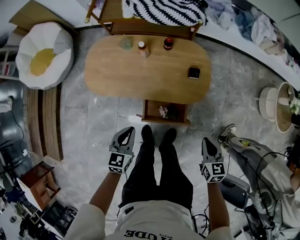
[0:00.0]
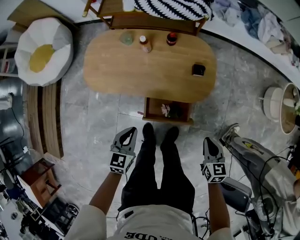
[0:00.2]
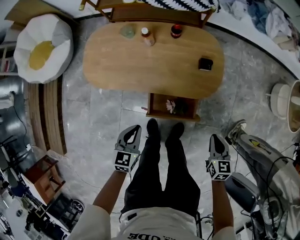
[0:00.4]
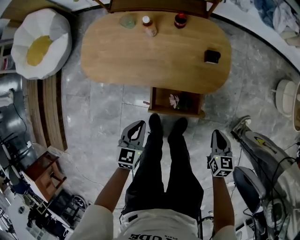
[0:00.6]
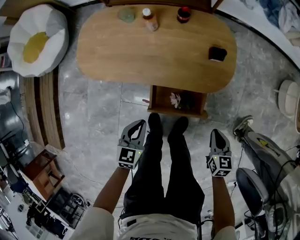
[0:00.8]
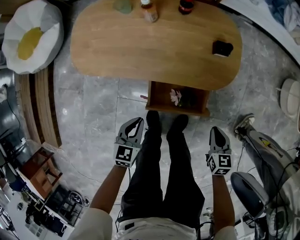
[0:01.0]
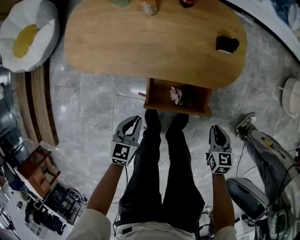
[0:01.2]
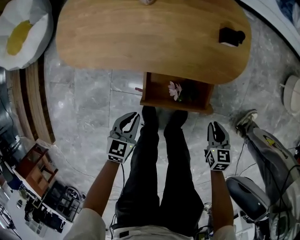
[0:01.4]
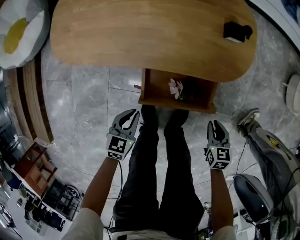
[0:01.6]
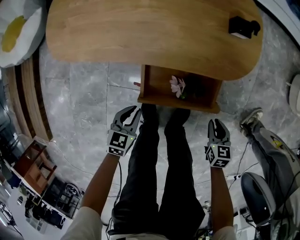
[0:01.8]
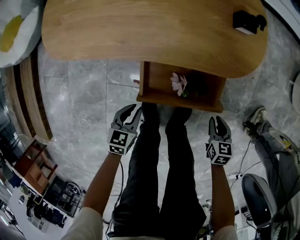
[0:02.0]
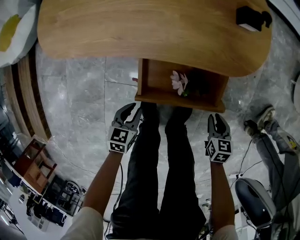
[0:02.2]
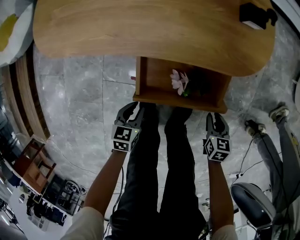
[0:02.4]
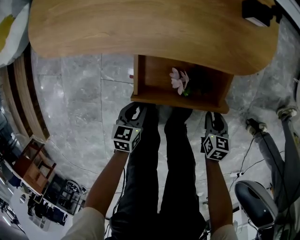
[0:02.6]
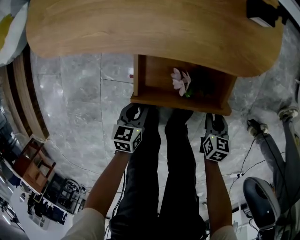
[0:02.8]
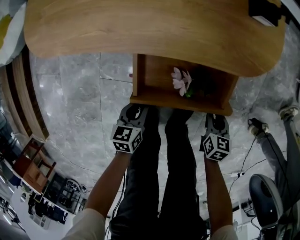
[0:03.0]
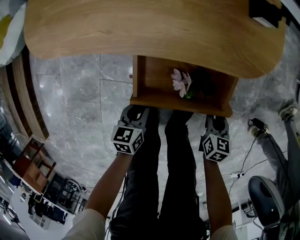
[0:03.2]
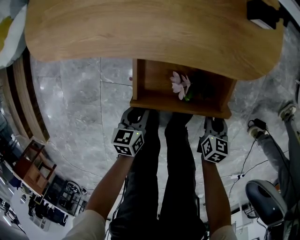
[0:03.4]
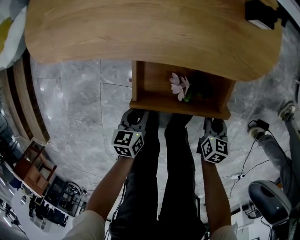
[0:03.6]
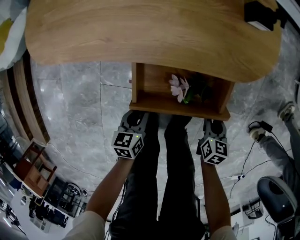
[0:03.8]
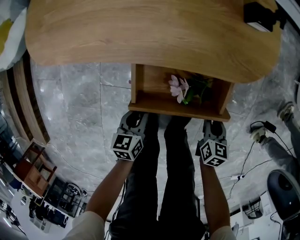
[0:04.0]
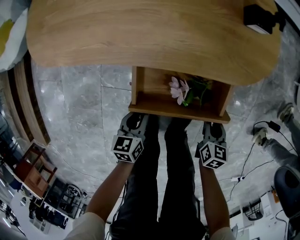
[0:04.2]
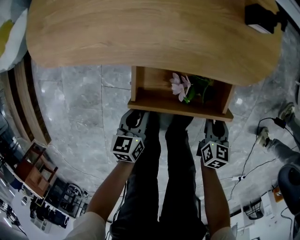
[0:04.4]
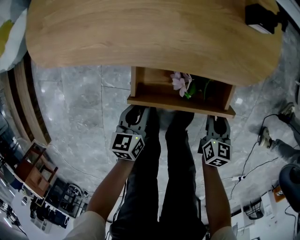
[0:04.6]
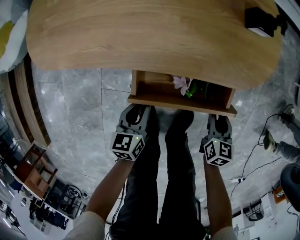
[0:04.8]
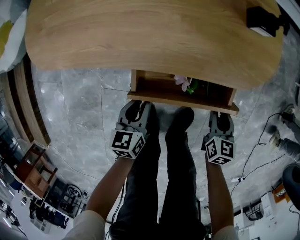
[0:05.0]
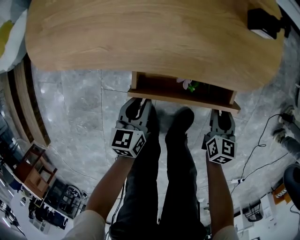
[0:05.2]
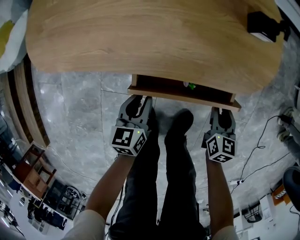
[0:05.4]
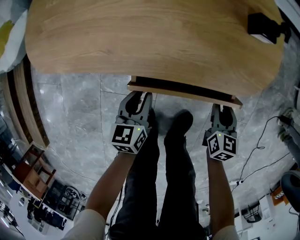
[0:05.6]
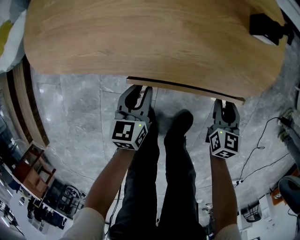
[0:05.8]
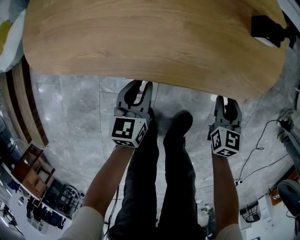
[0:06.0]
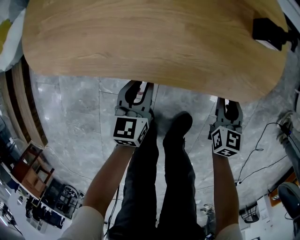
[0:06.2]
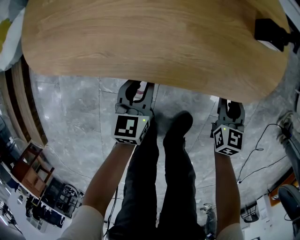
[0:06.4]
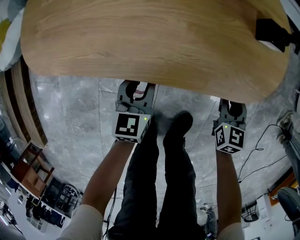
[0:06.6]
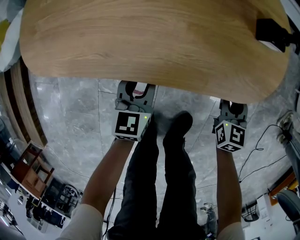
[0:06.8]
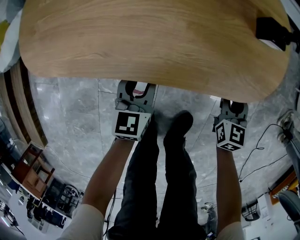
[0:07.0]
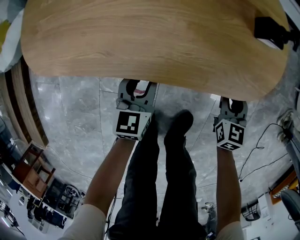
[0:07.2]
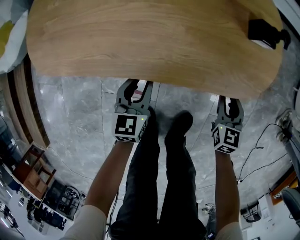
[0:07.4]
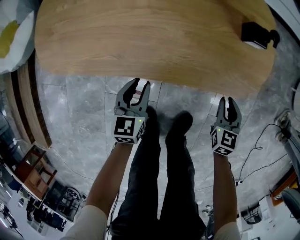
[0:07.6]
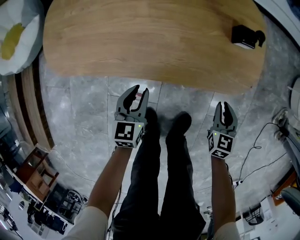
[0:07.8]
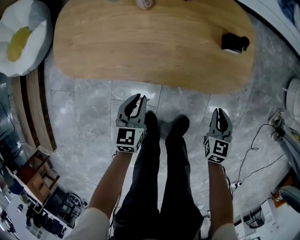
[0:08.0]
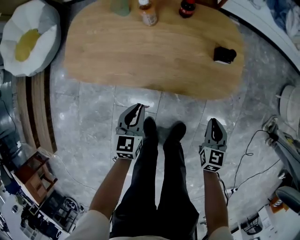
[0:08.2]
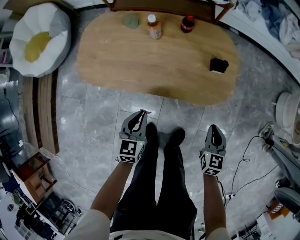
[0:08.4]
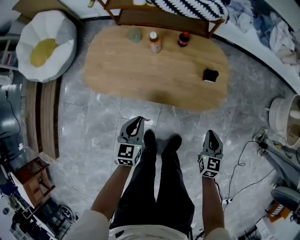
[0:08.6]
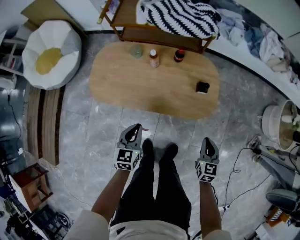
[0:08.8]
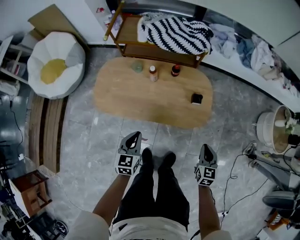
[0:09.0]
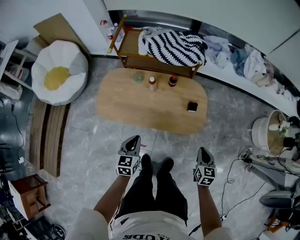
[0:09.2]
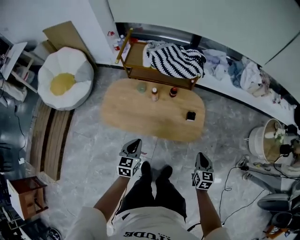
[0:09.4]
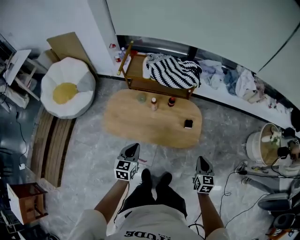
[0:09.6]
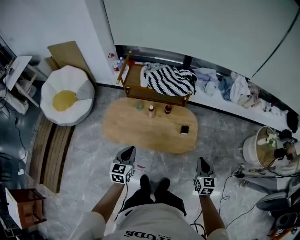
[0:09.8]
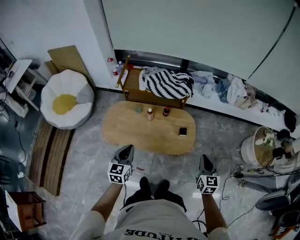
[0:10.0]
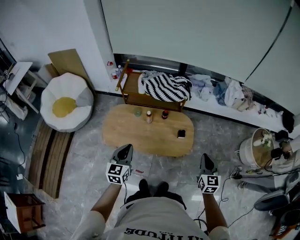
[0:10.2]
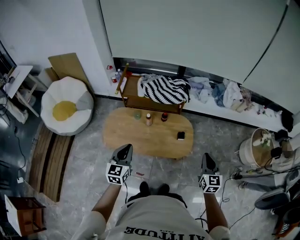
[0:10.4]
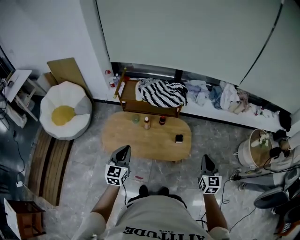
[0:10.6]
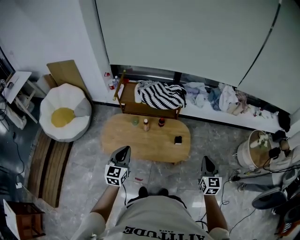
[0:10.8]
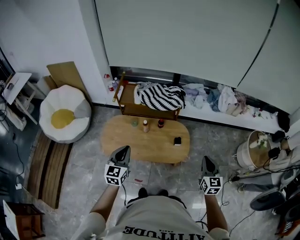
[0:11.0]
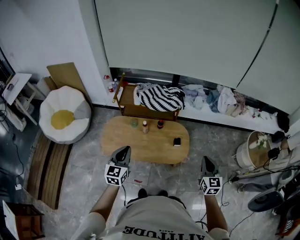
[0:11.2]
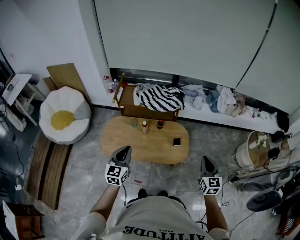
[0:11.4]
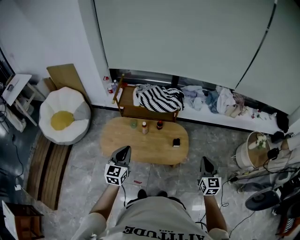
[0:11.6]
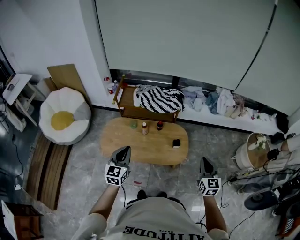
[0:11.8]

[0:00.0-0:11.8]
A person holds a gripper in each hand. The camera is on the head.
0:00.0 to 0:01.4: Both grippers travel together downward, about 30 cm.
0:01.4 to 0:03.0: Both grippers move downward, approximately 20 cm. The left gripper rotates some 20 degrees.
0:03.0 to 0:04.4: The grippers make only small movements.
0:04.4 to 0:06.0: The two grippers go about 15 cm forward.
0:06.0 to 0:07.4: The grippers make only small movements.
0:07.4 to 0:08.8: The grippers both shift upward by approximately 35 cm. The left gripper closes. The right gripper closes up.
0:08.8 to 0:10.4: Both grippers travel together upward, roughly 35 cm.
0:10.4 to 0:11.8: There are only small adjustments of the grippers.

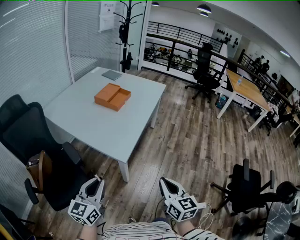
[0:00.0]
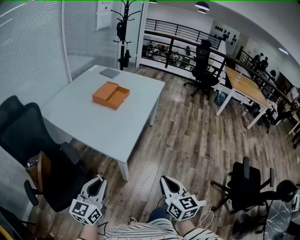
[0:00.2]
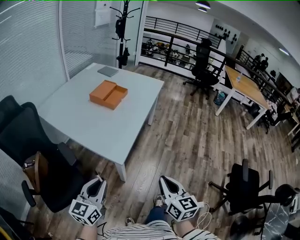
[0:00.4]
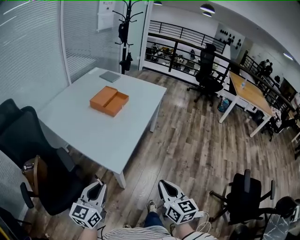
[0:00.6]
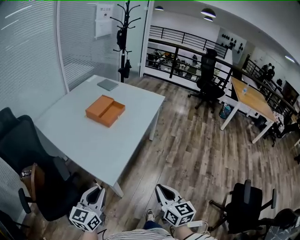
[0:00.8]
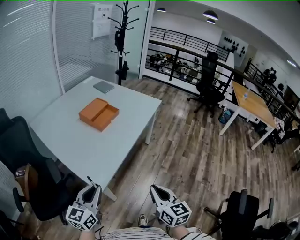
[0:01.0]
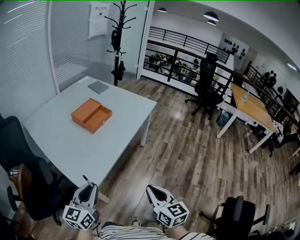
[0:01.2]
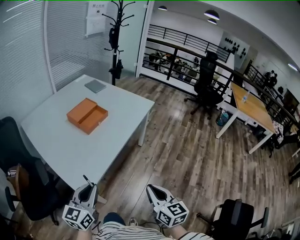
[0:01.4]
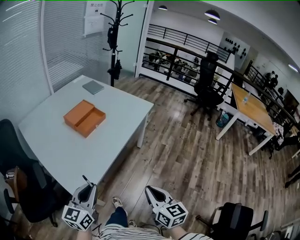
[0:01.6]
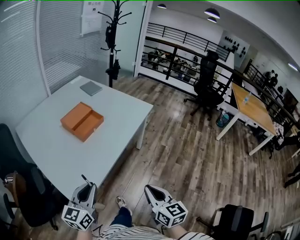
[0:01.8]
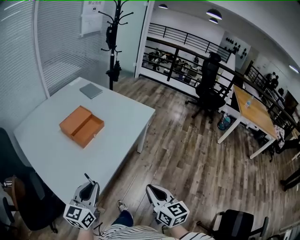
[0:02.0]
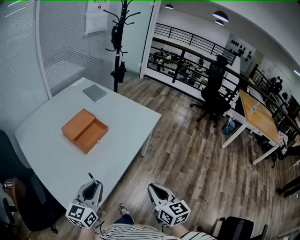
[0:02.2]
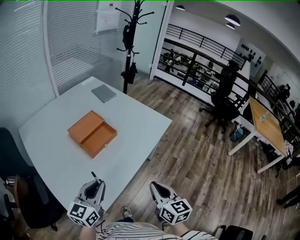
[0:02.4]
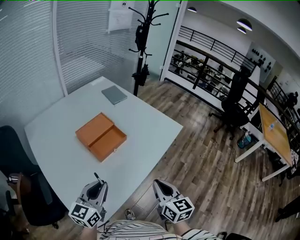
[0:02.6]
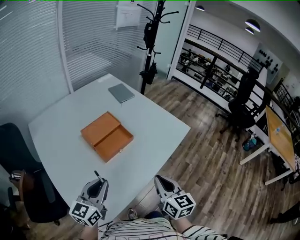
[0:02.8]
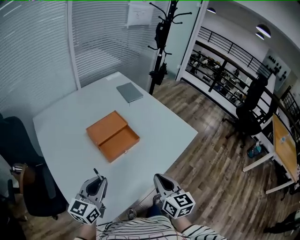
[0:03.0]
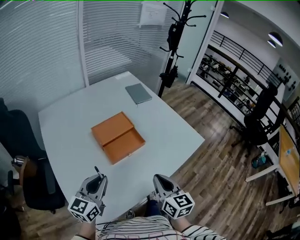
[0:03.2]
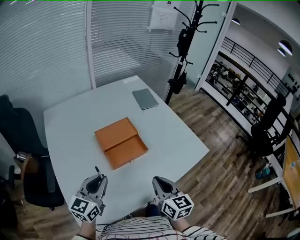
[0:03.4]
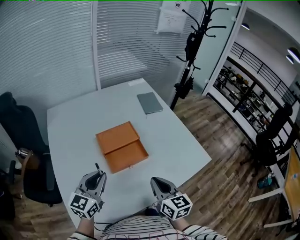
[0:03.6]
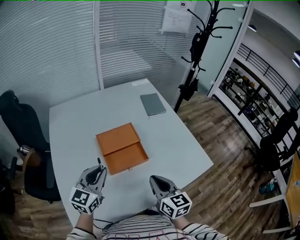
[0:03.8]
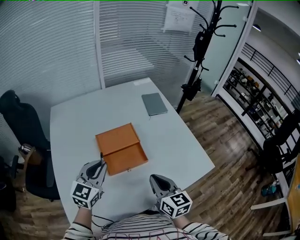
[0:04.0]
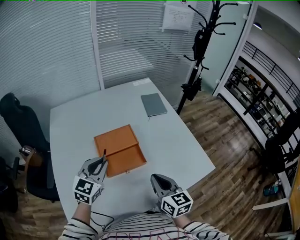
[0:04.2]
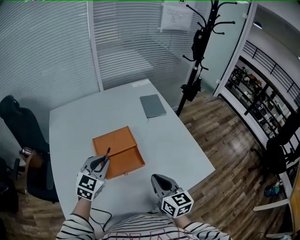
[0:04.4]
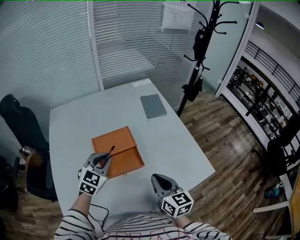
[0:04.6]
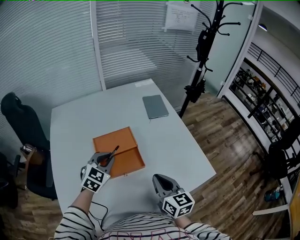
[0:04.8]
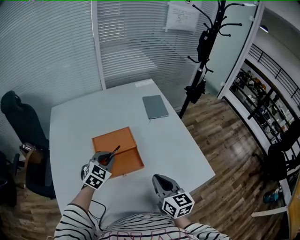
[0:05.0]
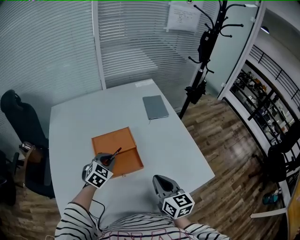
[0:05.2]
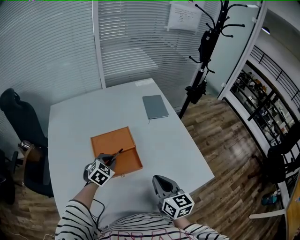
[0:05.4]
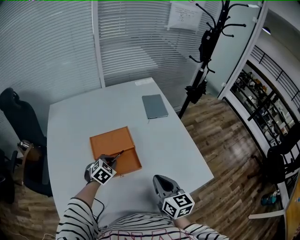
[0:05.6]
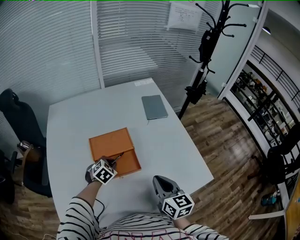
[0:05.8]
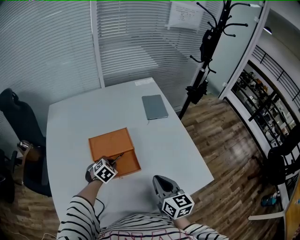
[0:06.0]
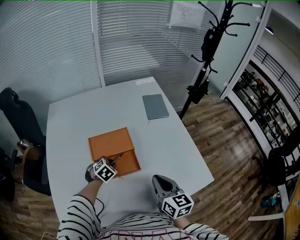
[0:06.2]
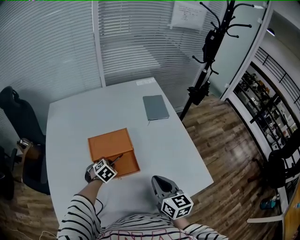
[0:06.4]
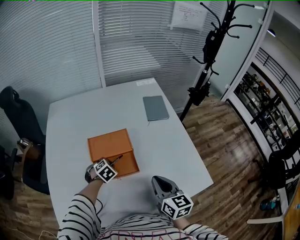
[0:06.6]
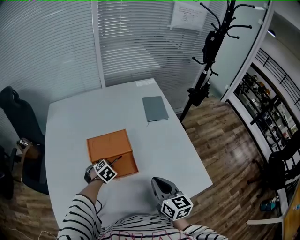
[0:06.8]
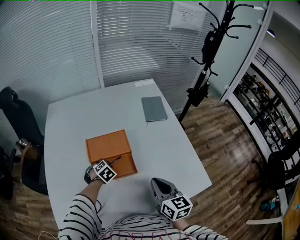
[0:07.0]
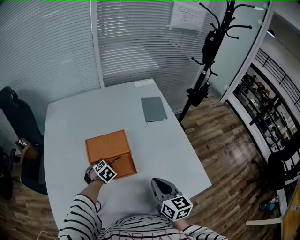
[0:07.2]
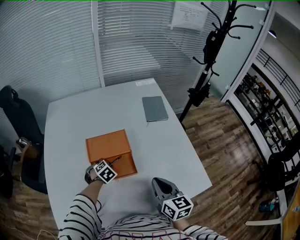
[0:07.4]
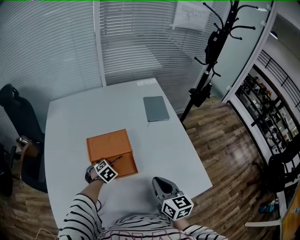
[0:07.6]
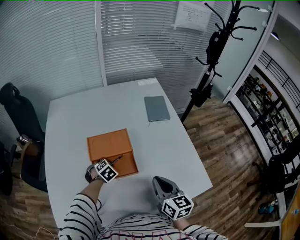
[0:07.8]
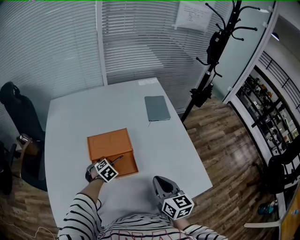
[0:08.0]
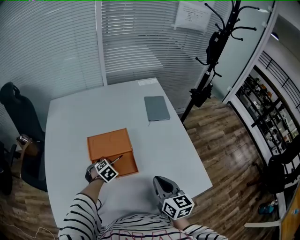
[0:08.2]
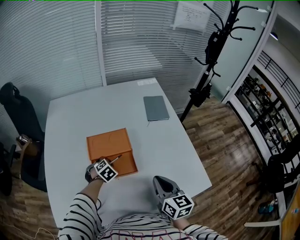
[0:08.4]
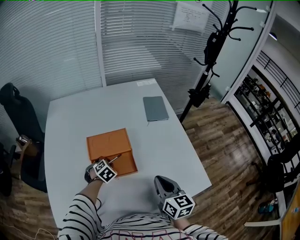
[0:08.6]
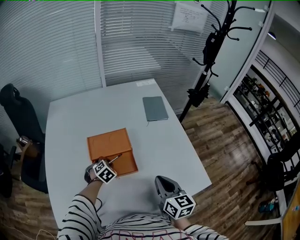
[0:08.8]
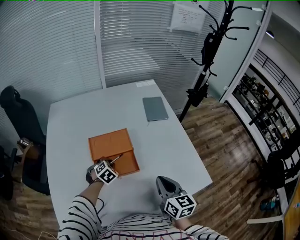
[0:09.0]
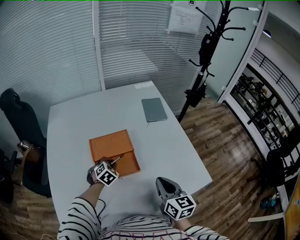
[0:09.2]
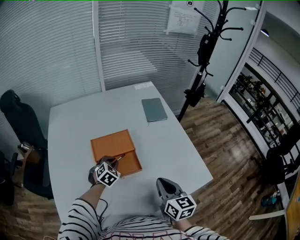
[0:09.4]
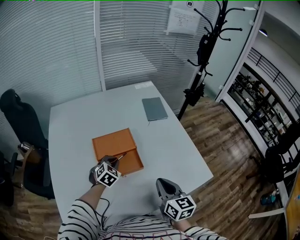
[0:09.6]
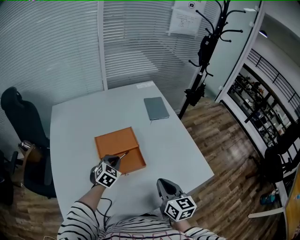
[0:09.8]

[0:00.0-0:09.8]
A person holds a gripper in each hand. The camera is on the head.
0:00.0 to 0:01.4: Both grippers travel together forward and to the right, approximately 30 cm.
0:01.4 to 0:02.8: Both grippers travel together forward, about 30 cm.
0:02.8 to 0:04.2: The right gripper ends up roughly 20 cm from where it was, and rotates approximately 30 degrees, while the left gripper shifts by approximately 20 cm, and changes its angle by approximately 30 degrees.
0:04.2 to 0:05.6: The right gripper moves about 5 cm, while the left gripper is displaced downward and forward by about 20 cm, and tilts its fingers some 30 degrees downward.
0:05.6 to 0:07.0: The left gripper is displaced downward by approximately 5 cm.
0:07.0 to 0:08.4: Both grippers stay about where they are.
0:08.4 to 0:09.8: The left gripper goes roughly 10 cm upward, and changes its angle by approximately 30 degrees; the right gripper moves backward, about 5 cm.

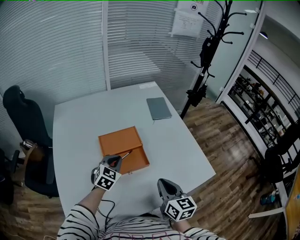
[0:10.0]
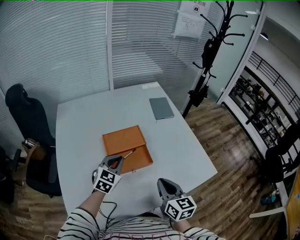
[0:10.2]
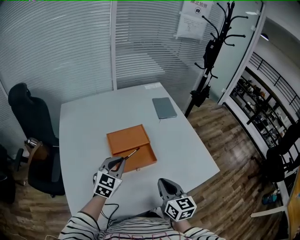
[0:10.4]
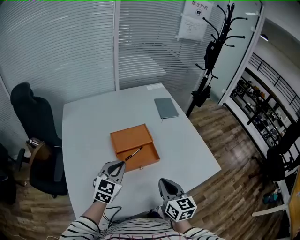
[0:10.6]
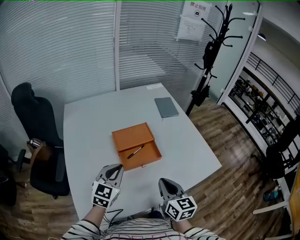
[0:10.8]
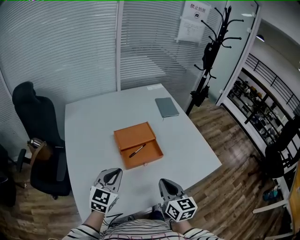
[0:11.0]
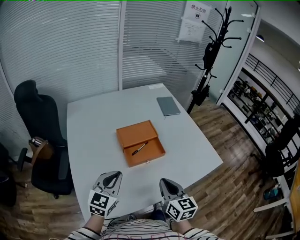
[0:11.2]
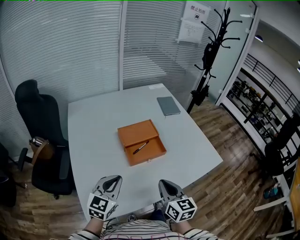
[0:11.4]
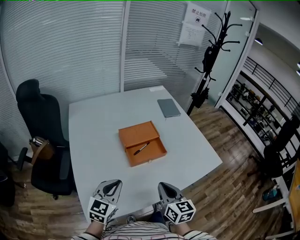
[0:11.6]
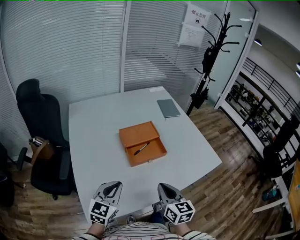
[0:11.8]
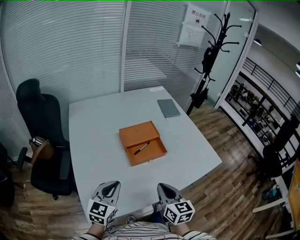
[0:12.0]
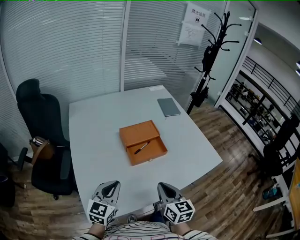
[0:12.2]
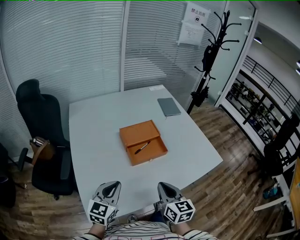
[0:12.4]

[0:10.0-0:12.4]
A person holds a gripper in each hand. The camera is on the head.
0:10.0 to 0:11.2: The left gripper is displaced backward, to the left and upward by some 25 cm, and rotates approximately 20 degrees, while the right gripper moves to the left and backward, some 15 cm.
0:11.2 to 0:12.4: The left gripper shifts about 5 cm backward.
